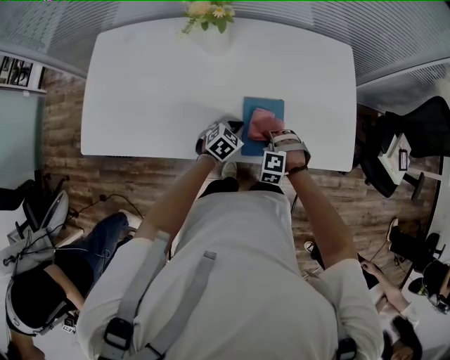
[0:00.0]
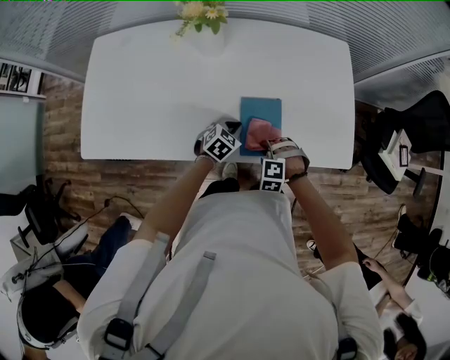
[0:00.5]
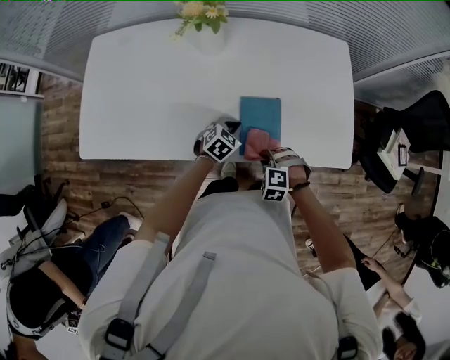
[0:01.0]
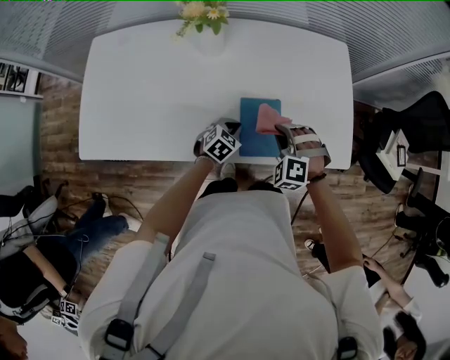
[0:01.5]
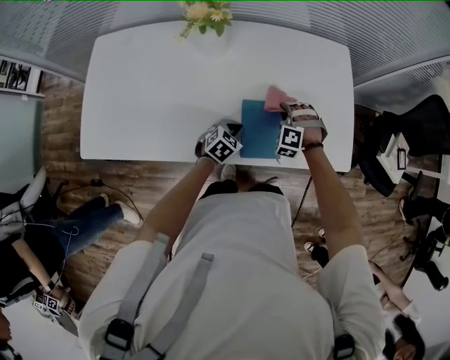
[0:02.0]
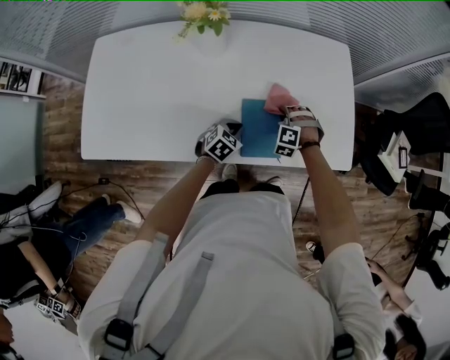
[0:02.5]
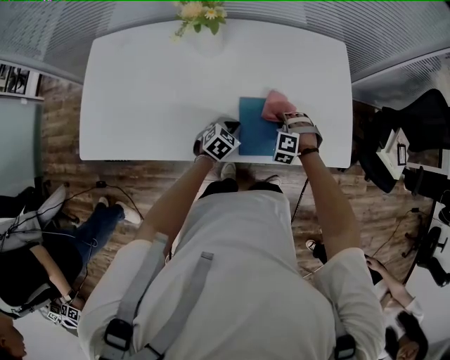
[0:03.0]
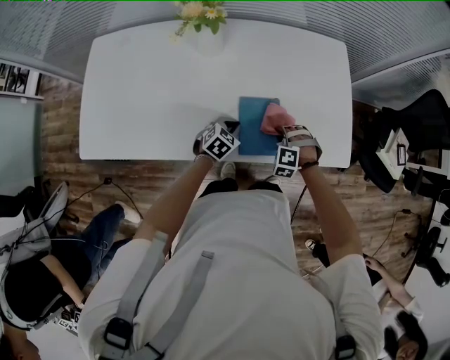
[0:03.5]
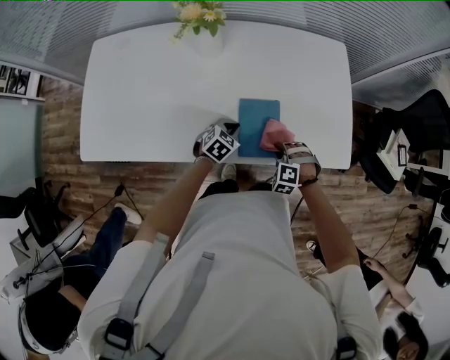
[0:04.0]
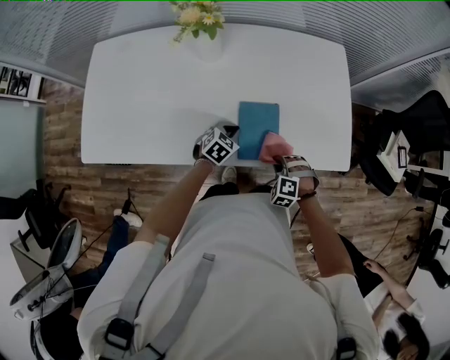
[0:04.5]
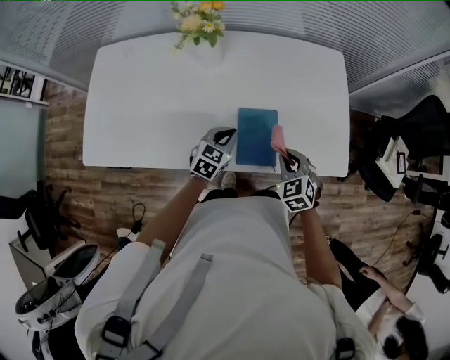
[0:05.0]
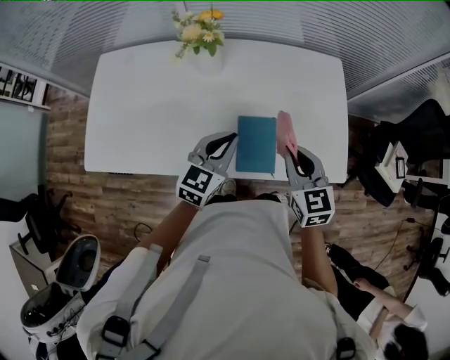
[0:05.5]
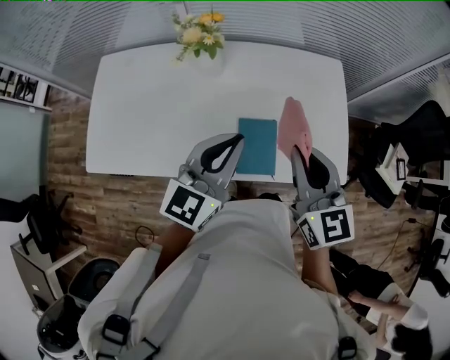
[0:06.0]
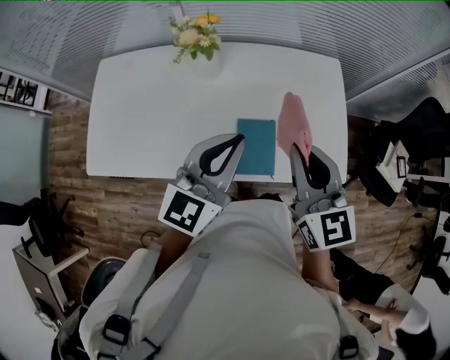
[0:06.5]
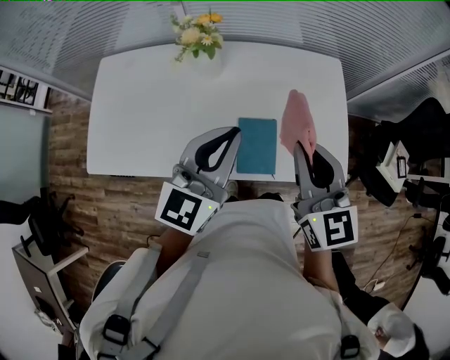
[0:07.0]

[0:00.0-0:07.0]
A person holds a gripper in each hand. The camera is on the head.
0:00.0 to 0:02.0: The right gripper shifts roughly 15 cm forward.
0:02.0 to 0:03.5: The right gripper shifts approximately 10 cm backward and to the right.
0:03.5 to 0:05.0: The two grippers go about 10 cm upward. The right gripper rolls clockwise, seen from behind, by some 50 degrees.
0:05.0 to 0:07.0: The two grippers go about 30 cm upward. The left gripper tips its fingers upward by roughly 30 degrees, while the right gripper points its fingers roughly 40 degrees further upward.

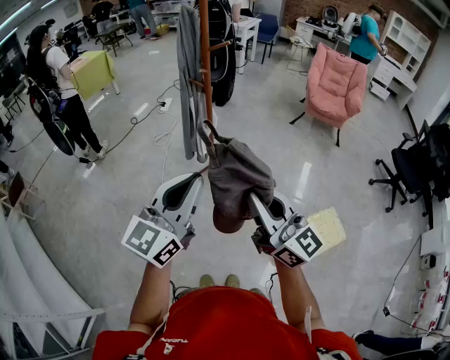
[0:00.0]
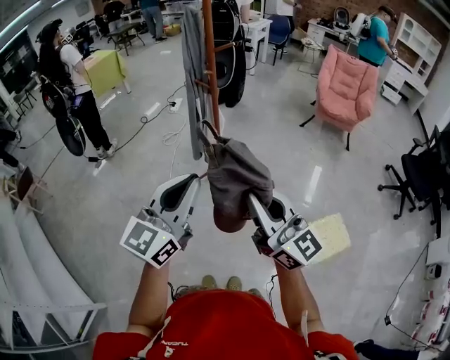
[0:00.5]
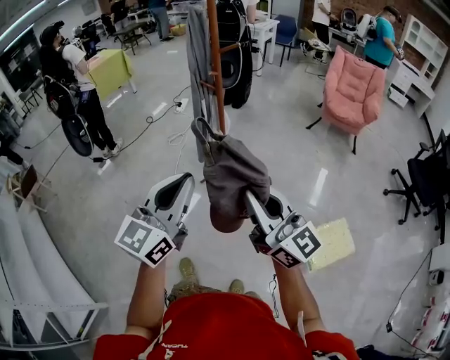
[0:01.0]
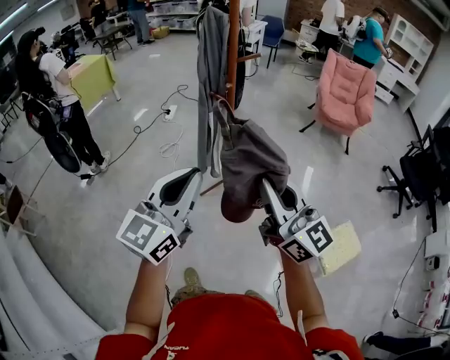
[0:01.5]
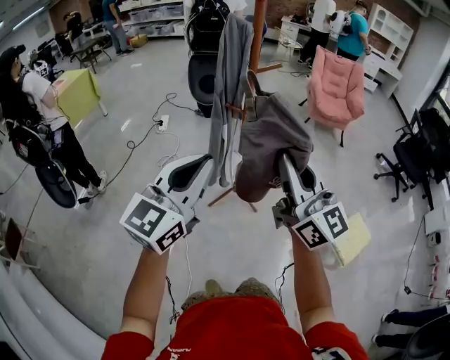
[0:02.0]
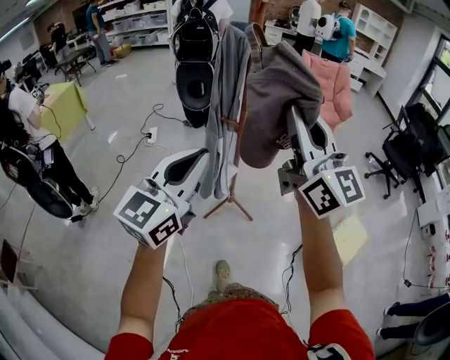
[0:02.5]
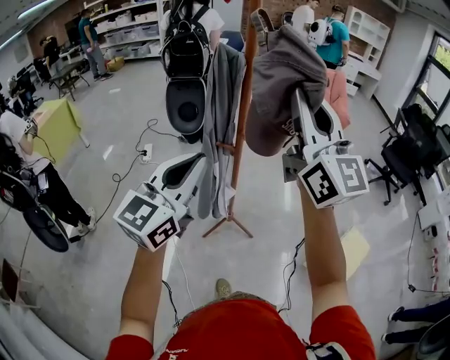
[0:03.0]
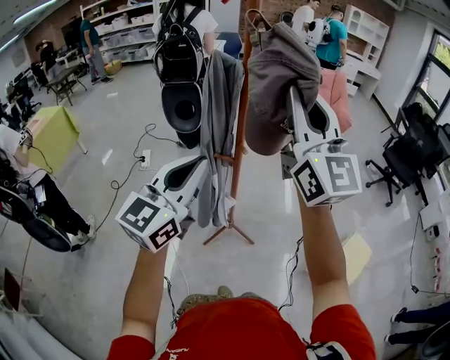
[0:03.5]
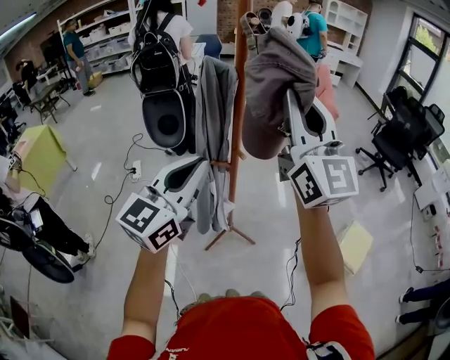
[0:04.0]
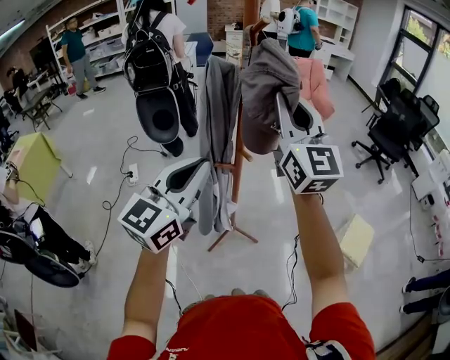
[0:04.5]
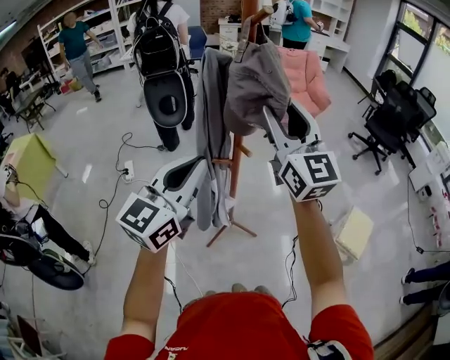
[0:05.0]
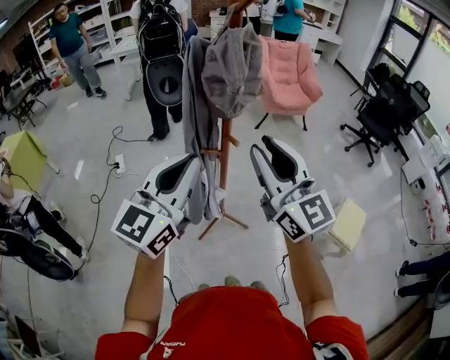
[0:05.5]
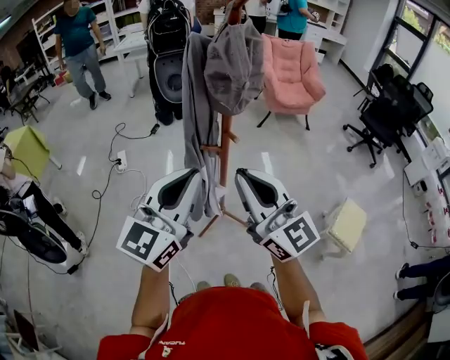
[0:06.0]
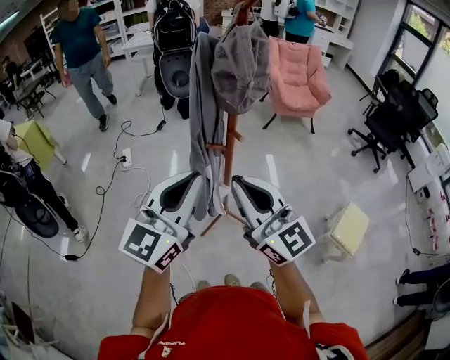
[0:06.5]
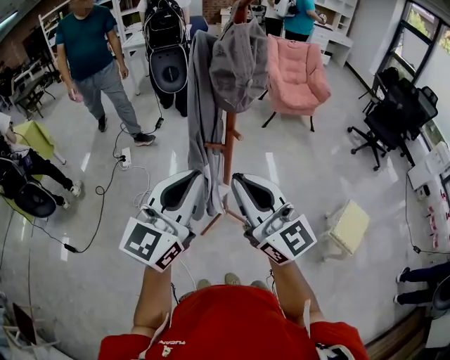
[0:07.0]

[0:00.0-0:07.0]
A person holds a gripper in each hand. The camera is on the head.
0:00.0 to 0:02.0: The right gripper goes approximately 30 cm forward, to the left and upward, and rotates some 20 degrees. The left gripper heads forward and to the left, covering approximately 30 cm.
0:02.0 to 0:03.5: The right gripper is displaced forward and upward by about 25 cm, and turns by about 30 degrees. The left gripper moves forward, approximately 20 cm.
0:03.5 to 0:05.0: The right gripper heads downward and forward, covering roughly 10 cm, and opens, while the left gripper moves roughly 5 cm.
0:05.0 to 0:07.0: The left gripper moves backward, roughly 5 cm; the right gripper heads backward and downward, covering approximately 20 cm, swivels some 20 degrees, and closes its fingers.

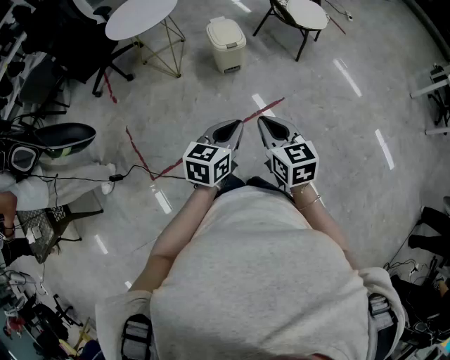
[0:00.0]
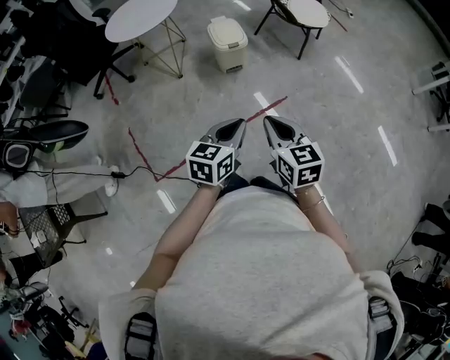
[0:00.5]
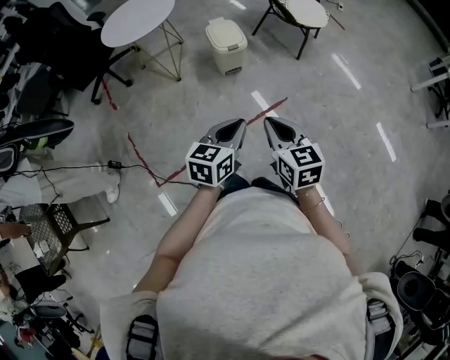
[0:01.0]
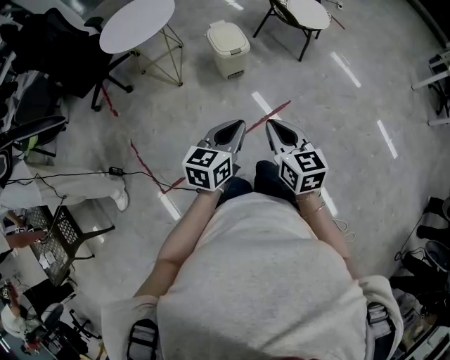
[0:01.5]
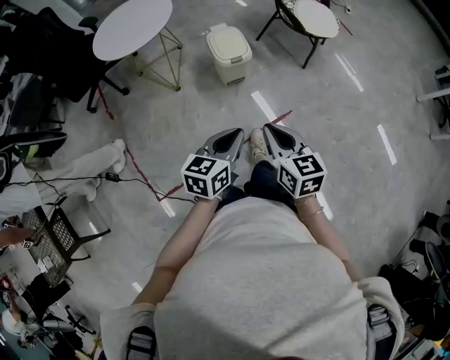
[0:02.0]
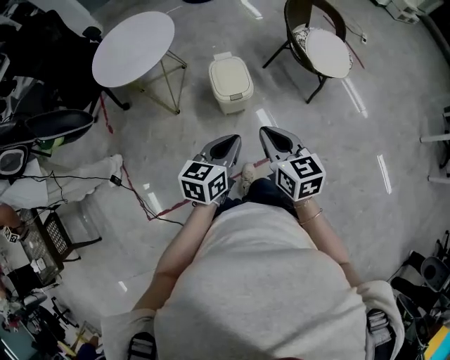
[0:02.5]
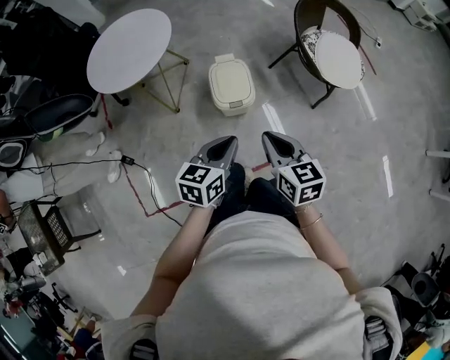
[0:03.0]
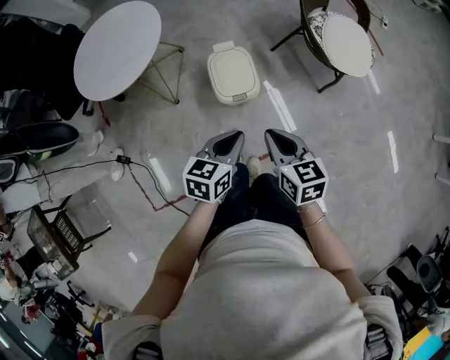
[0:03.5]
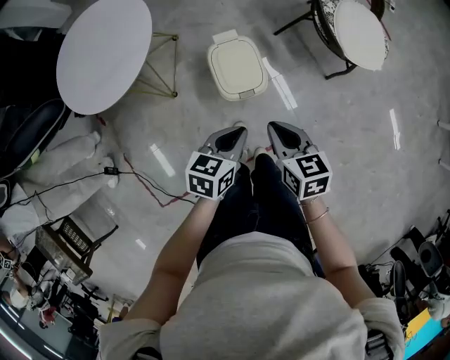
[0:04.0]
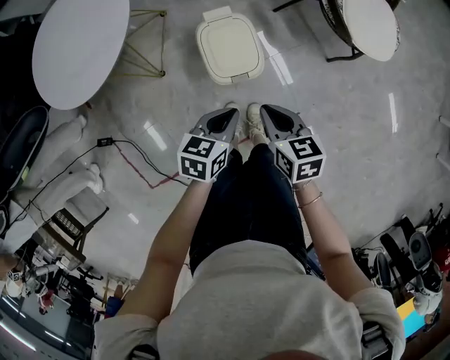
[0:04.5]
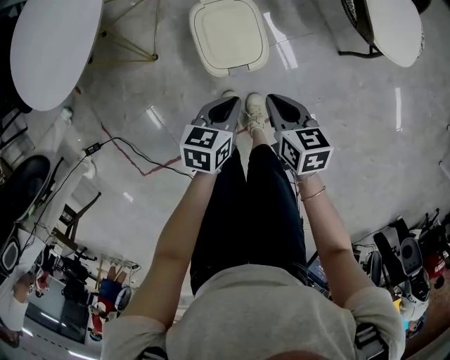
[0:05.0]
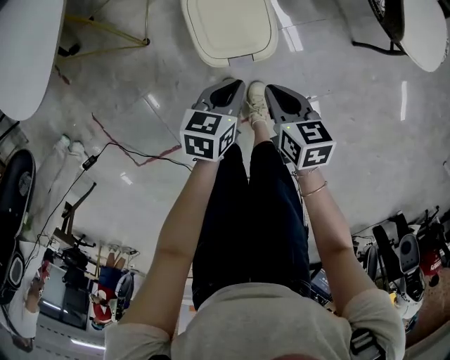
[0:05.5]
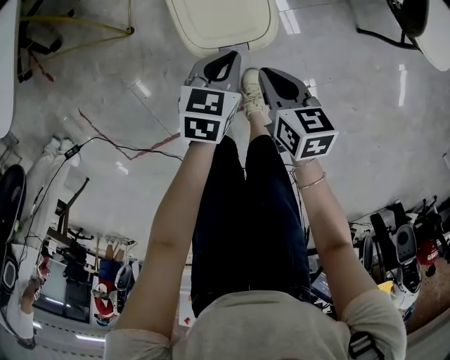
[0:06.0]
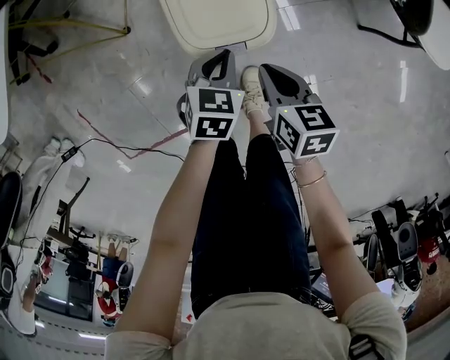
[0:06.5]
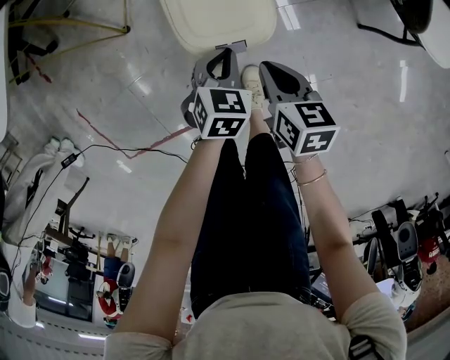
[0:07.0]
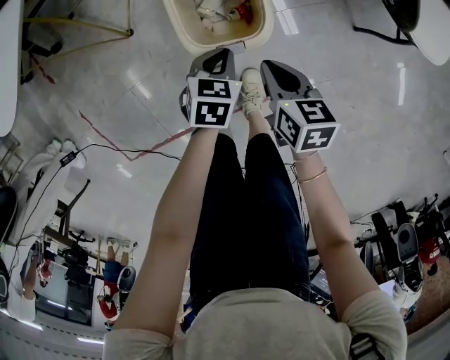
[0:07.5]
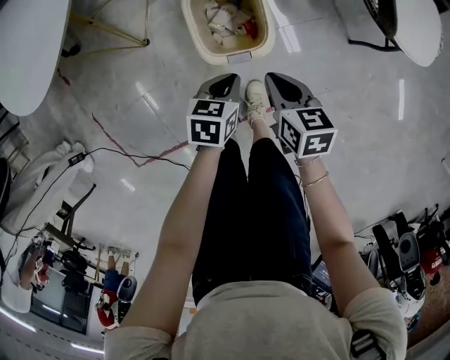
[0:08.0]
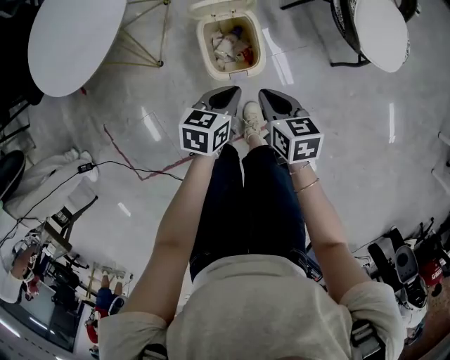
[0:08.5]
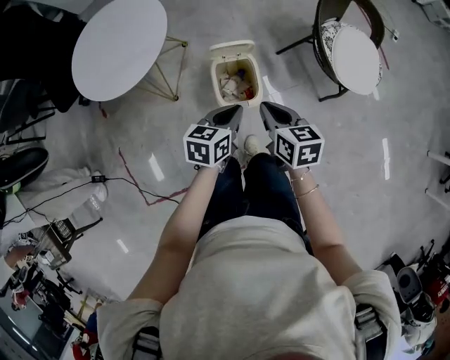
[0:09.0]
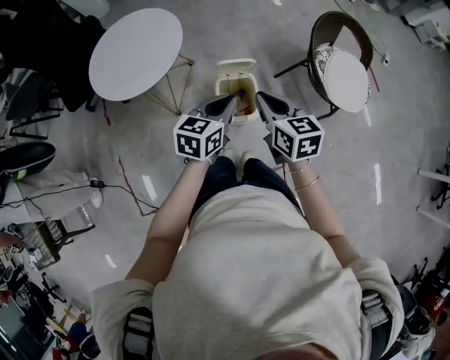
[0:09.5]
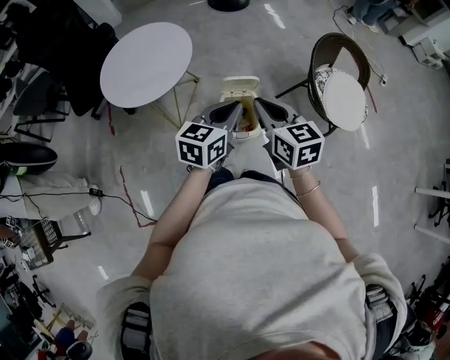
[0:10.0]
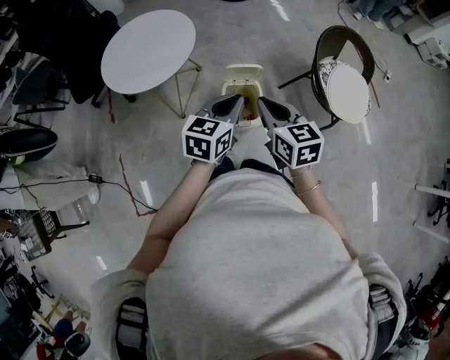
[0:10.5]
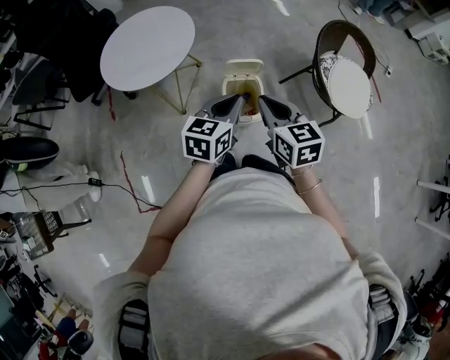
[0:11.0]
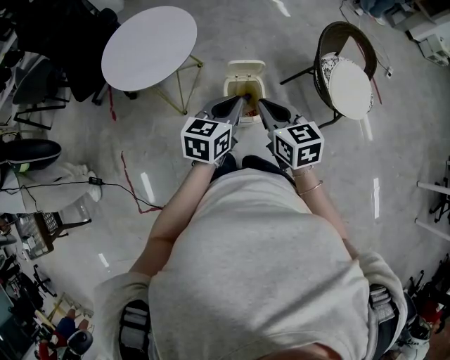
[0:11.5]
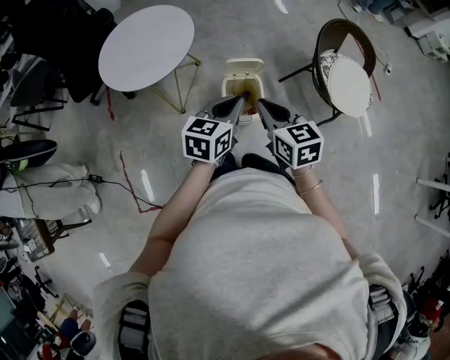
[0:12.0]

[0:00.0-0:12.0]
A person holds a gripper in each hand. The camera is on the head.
0:00.0 to 0:02.0: Both grippers travel together forward, some 15 cm.
0:02.0 to 0:04.0: Both grippers move forward, approximately 40 cm. The right gripper turns by approximately 20 degrees.
0:04.0 to 0:06.0: The grippers both shift downward by about 30 cm.
0:06.0 to 0:08.0: The left gripper changes place by approximately 5 cm. The right gripper heads upward, covering some 5 cm.
0:08.0 to 0:10.0: The grippers both shift upward by some 40 cm. The right gripper turns by approximately 40 degrees; the left gripper points its fingers about 30 degrees further upward.
0:10.0 to 0:12.0: The right gripper shifts by approximately 5 cm.
